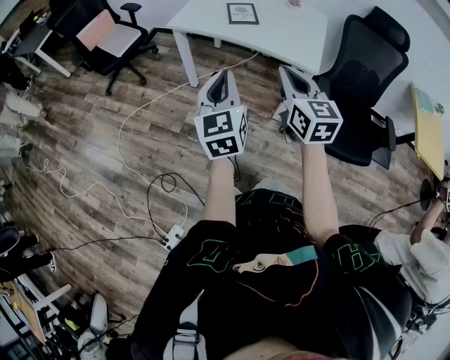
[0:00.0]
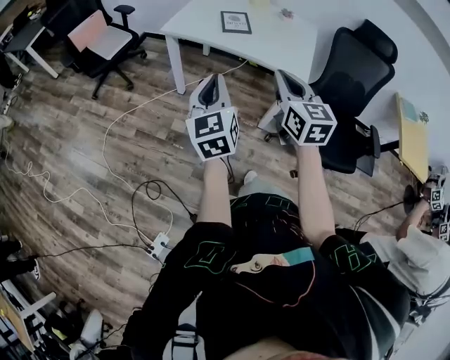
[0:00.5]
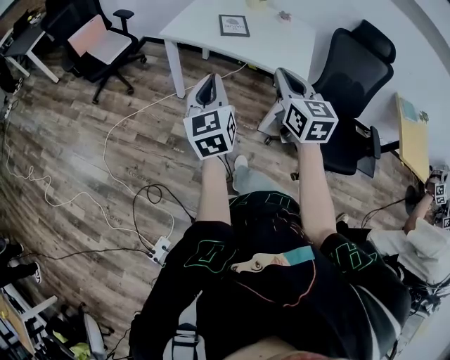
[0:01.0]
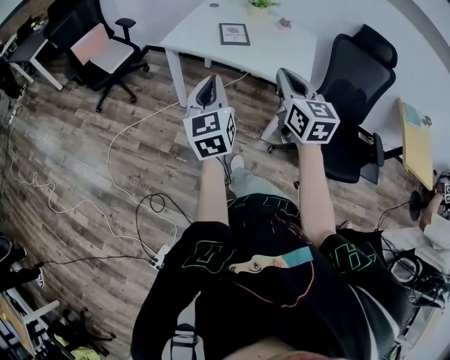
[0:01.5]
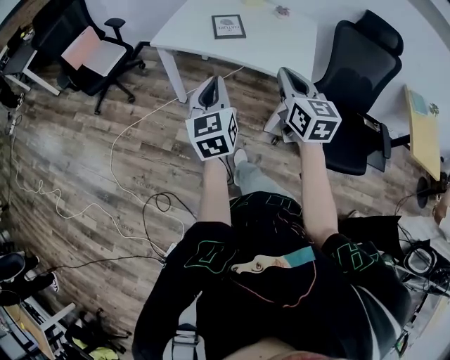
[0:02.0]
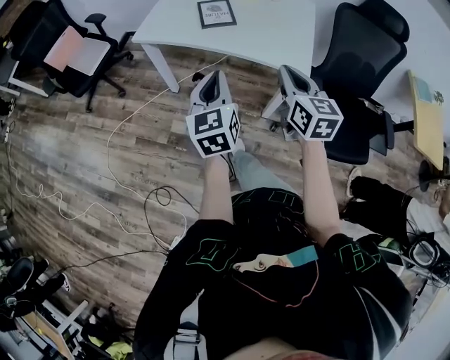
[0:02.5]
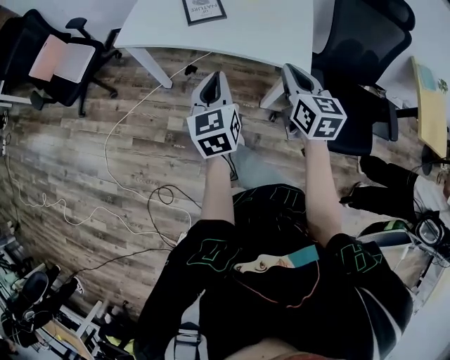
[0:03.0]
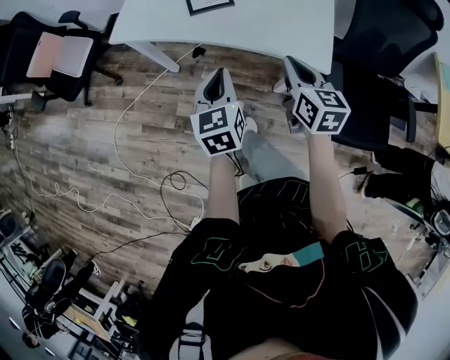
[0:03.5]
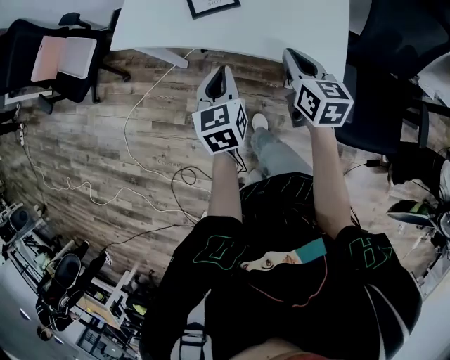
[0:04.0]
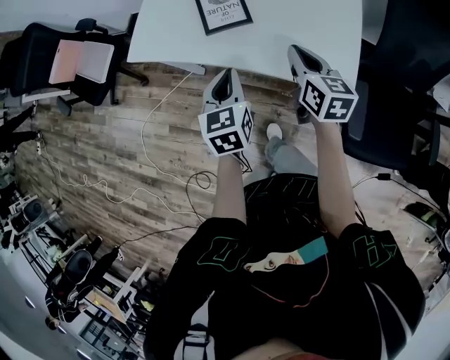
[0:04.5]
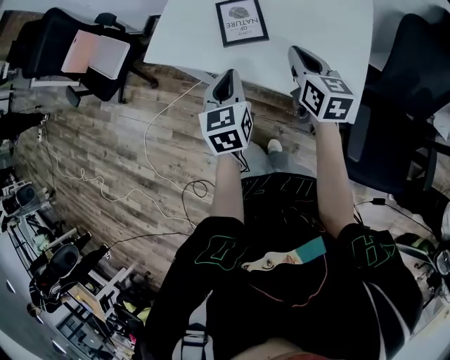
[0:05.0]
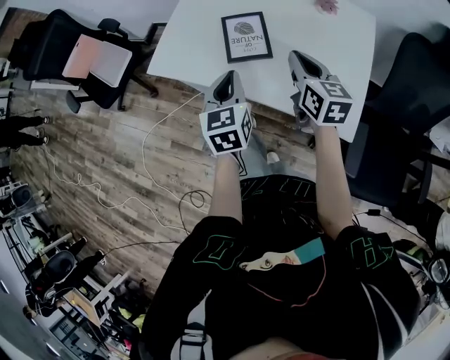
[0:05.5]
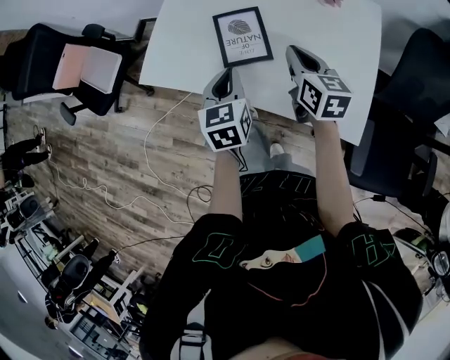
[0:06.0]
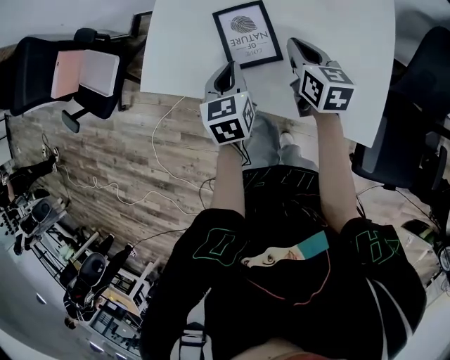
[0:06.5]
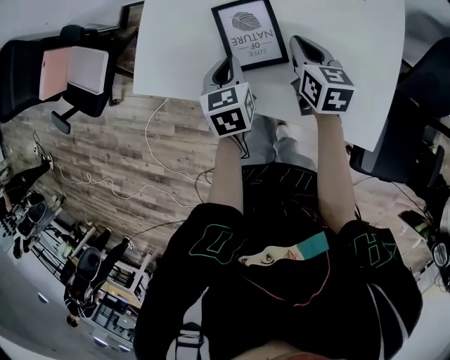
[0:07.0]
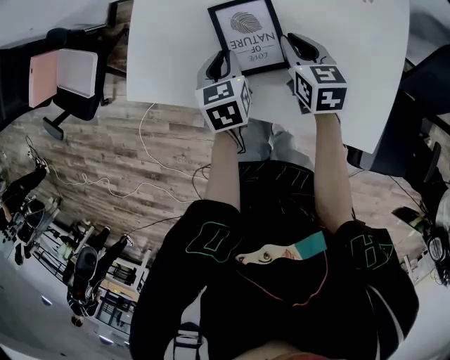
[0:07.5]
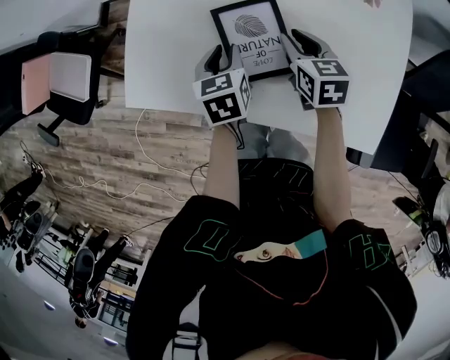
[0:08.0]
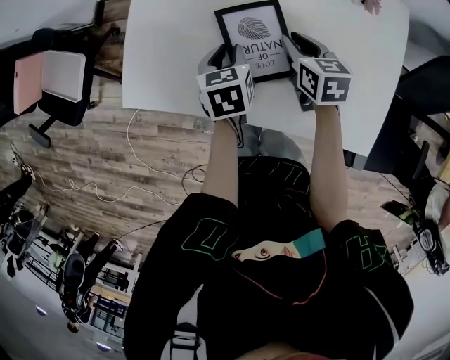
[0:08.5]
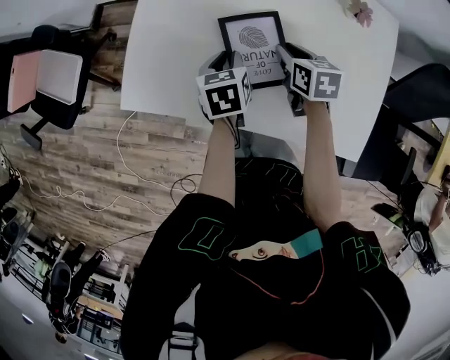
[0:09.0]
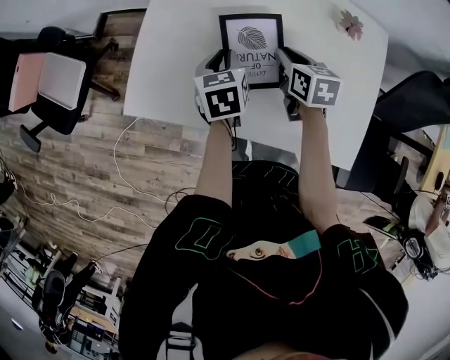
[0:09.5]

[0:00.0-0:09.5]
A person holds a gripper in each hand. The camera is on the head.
0:00.0 to 0:02.0: The grippers both shift forward by some 10 cm.
0:02.0 to 0:04.0: Both grippers travel together forward and downward, roughly 30 cm. The left gripper changes its angle by approximately 20 degrees. Meanwhile the right gripper rotates about 20 degrees.
0:04.0 to 0:05.5: The grippers both shift forward and upward by approximately 15 cm.
0:05.5 to 0:07.5: The left gripper moves forward and downward, roughly 20 cm, and swivels about 20 degrees, while the right gripper moves downward and forward, about 20 cm.
0:07.5 to 0:09.5: The left gripper moves forward, approximately 5 cm, while the right gripper shifts by about 5 cm.

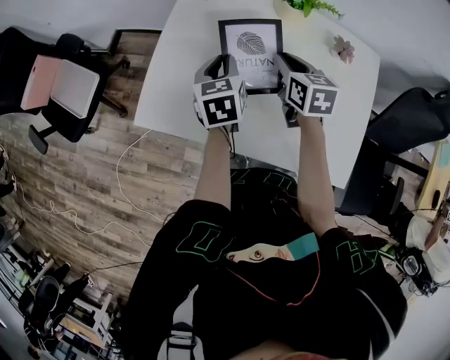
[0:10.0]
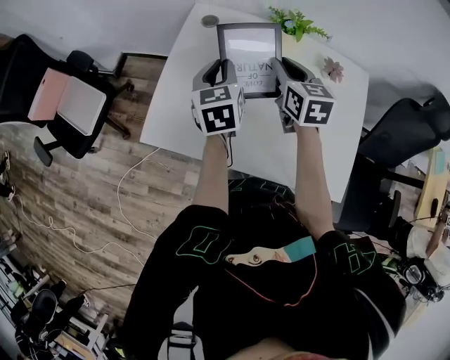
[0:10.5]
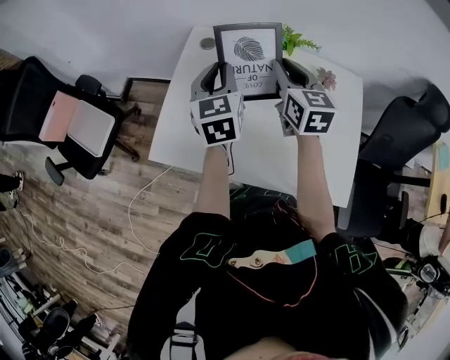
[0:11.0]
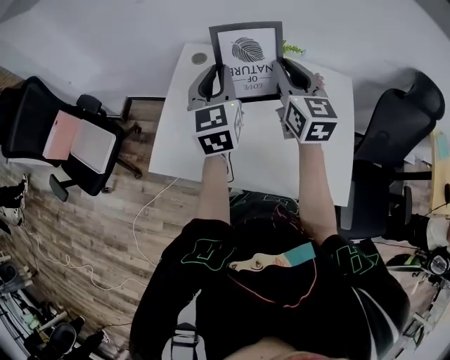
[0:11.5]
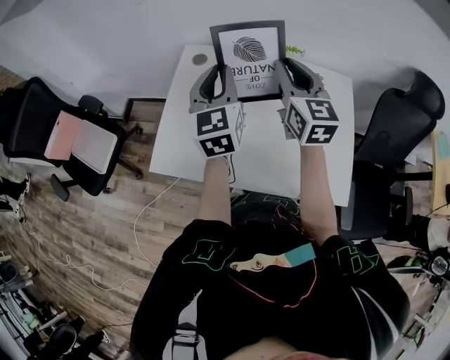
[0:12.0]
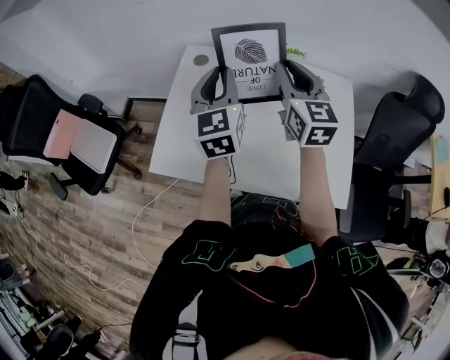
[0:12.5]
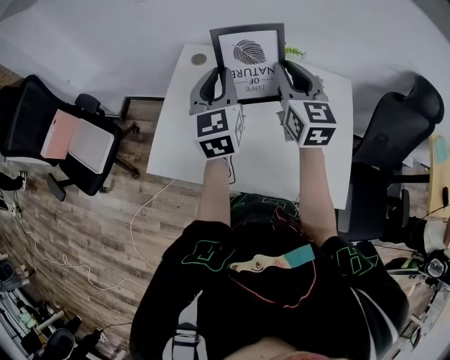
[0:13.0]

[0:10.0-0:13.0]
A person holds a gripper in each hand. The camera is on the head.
0:10.0 to 0:11.5: Both grippers travel together upward, about 20 cm. The left gripper changes its angle by roughly 30 degrees. The right gripper rotates roughly 30 degrees.
0:11.5 to 0:13.0: Neither gripper changes place.

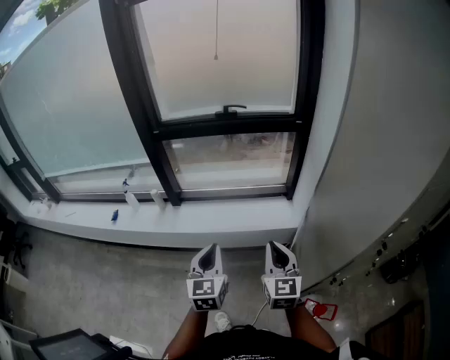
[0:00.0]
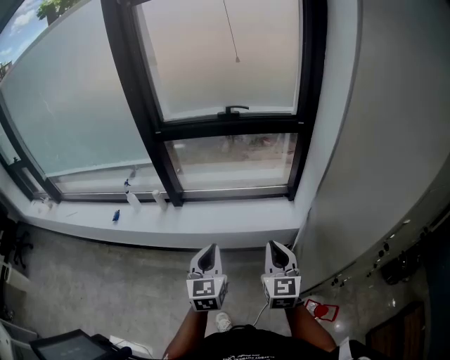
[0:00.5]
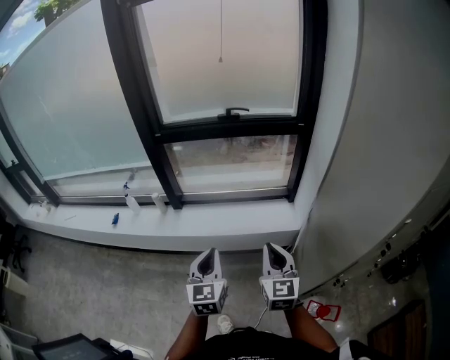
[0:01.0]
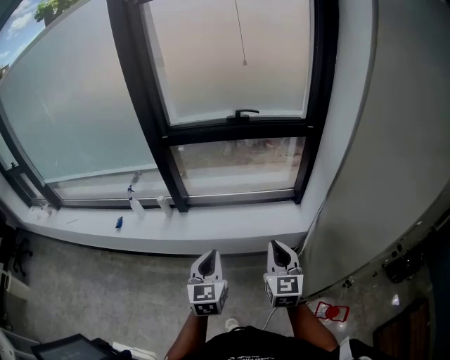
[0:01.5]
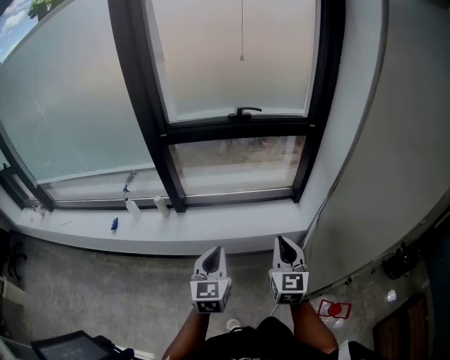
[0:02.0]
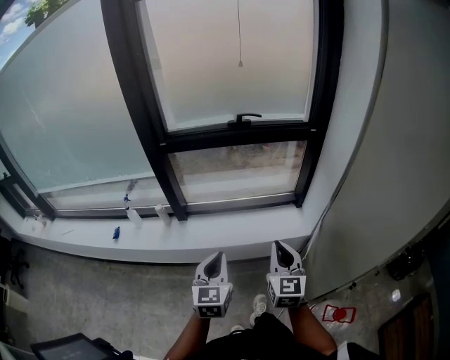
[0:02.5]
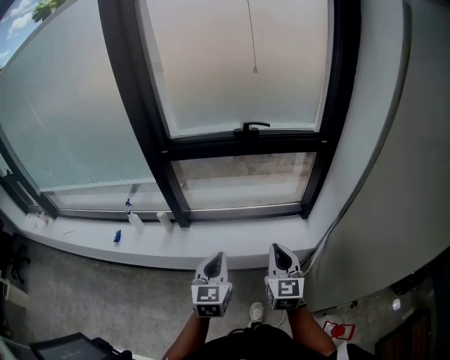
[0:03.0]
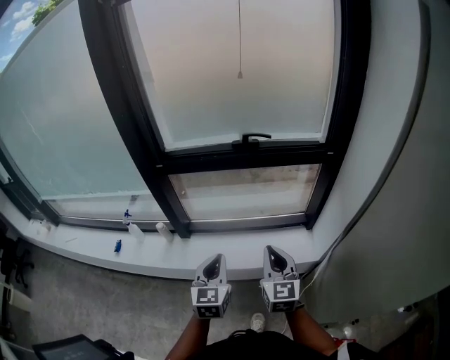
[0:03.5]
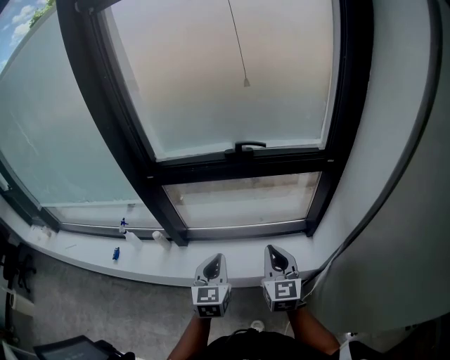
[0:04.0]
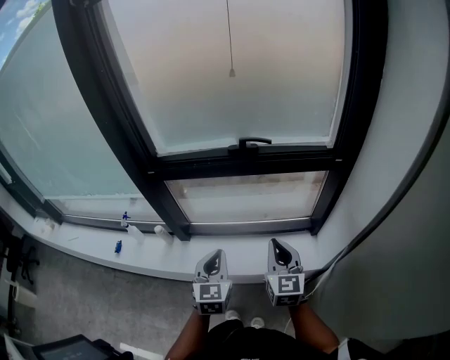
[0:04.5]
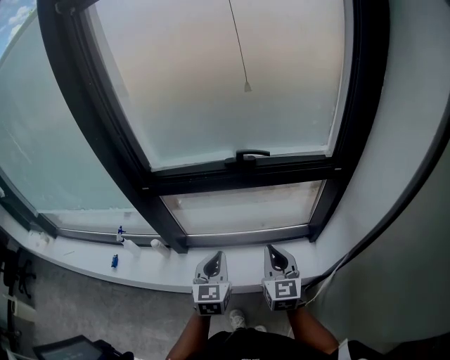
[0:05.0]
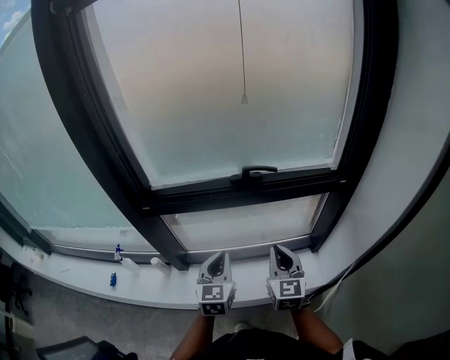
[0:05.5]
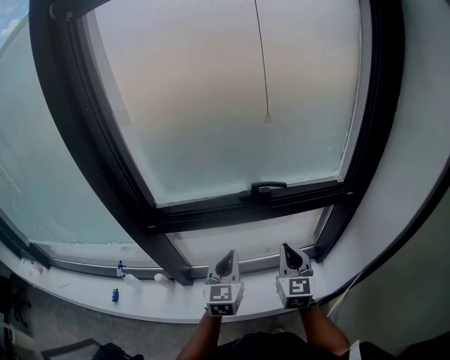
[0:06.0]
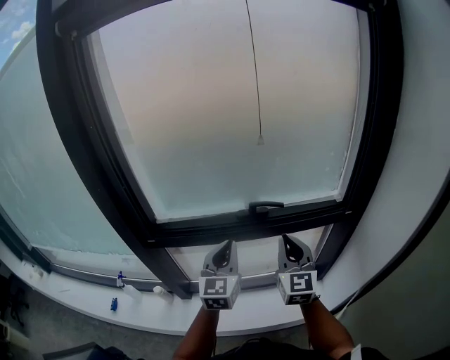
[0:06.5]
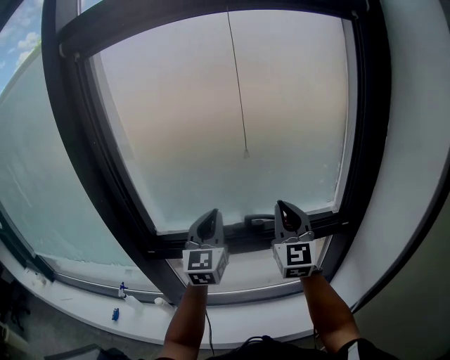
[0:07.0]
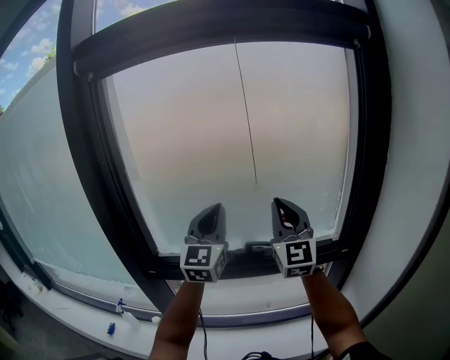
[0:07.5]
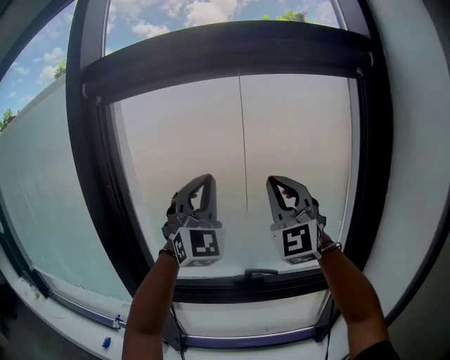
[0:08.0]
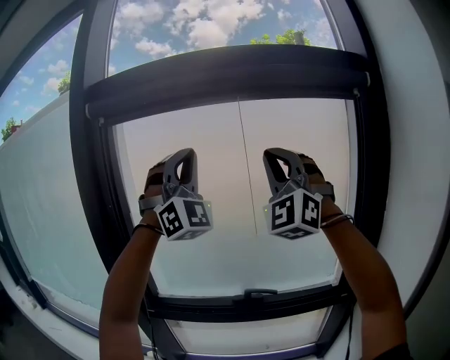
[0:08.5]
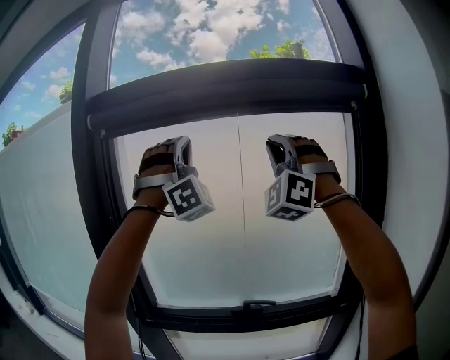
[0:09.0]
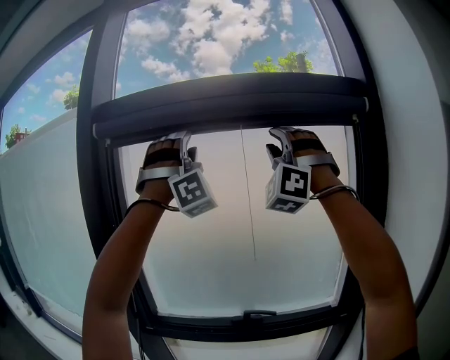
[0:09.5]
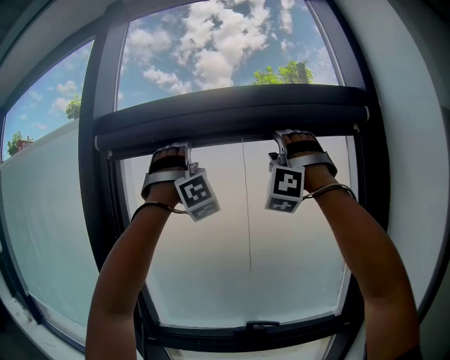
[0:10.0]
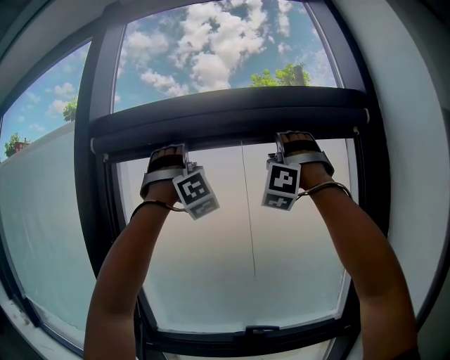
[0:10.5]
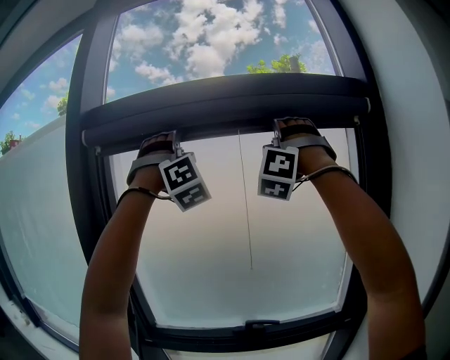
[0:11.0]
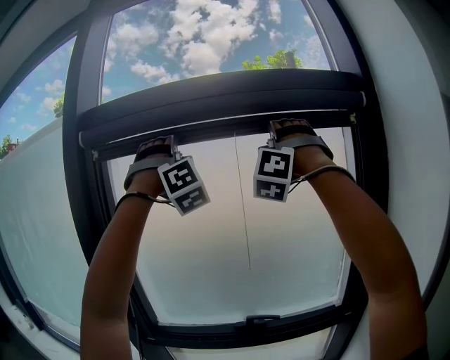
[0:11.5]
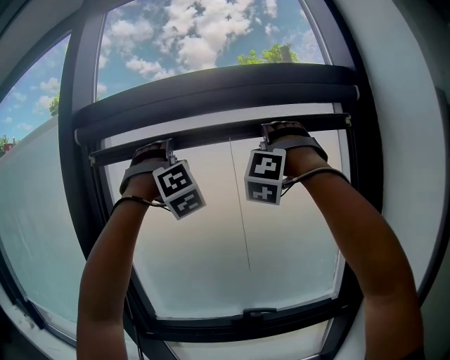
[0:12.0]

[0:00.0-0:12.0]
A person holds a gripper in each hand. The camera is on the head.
0:00.0 to 0:02.0: The left gripper travels to the left by about 10 cm. Meanwhile the right gripper goes approximately 10 cm to the left and forward.
0:02.0 to 0:04.0: The two grippers go some 25 cm forward.
0:04.0 to 0:06.0: Both grippers travel together forward, about 20 cm.
0:06.0 to 0:08.0: Both grippers move upward, about 50 cm. The left gripper tilts its fingers roughly 40 degrees upward. Meanwhile the right gripper angles its fingers upward, by some 40 degrees.
0:08.0 to 0:10.0: Both grippers move upward, some 20 cm. The left gripper twists approximately 50 degrees clockwise, seen from behind, and opens its fingers. The right gripper rolls counterclockwise, seen from behind, by some 60 degrees, and opens.
0:10.0 to 0:12.0: The right gripper moves approximately 5 cm.

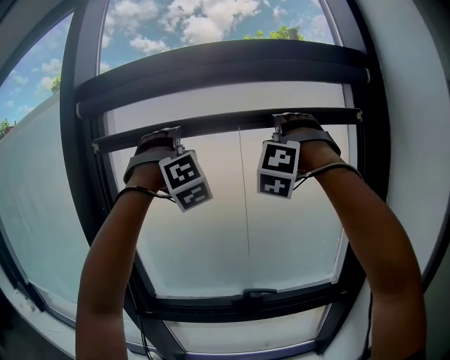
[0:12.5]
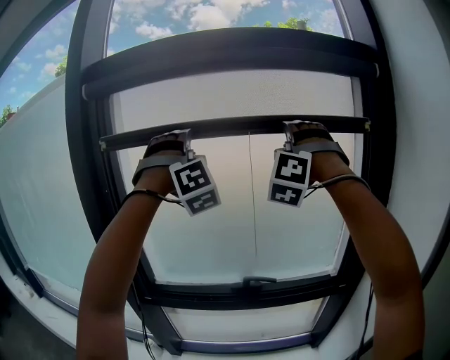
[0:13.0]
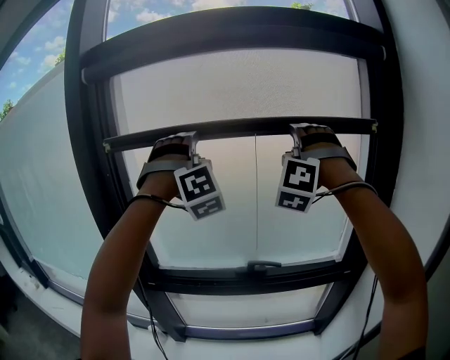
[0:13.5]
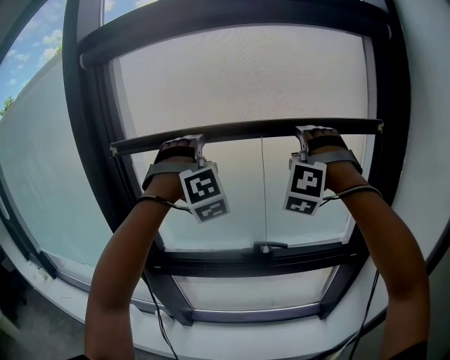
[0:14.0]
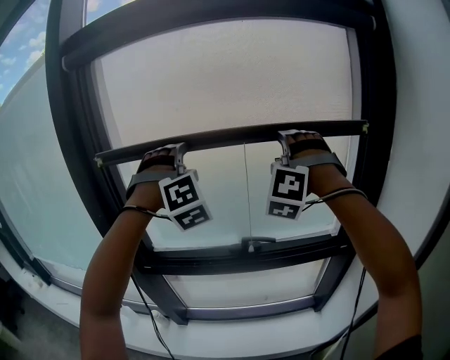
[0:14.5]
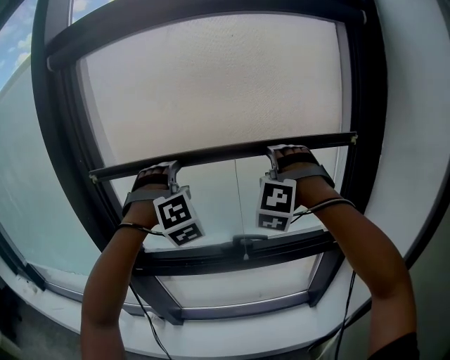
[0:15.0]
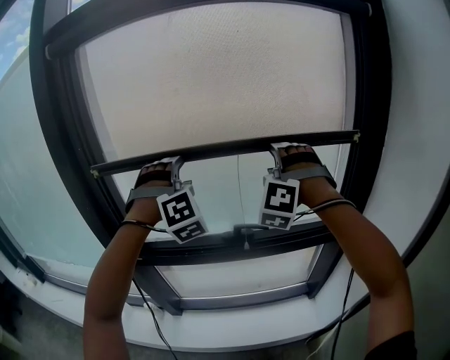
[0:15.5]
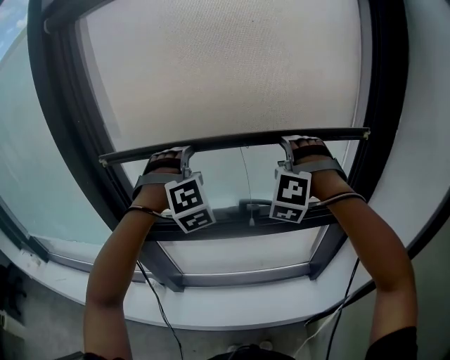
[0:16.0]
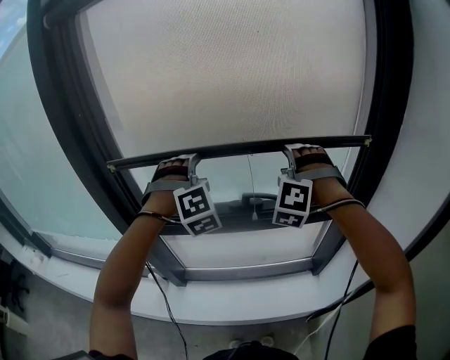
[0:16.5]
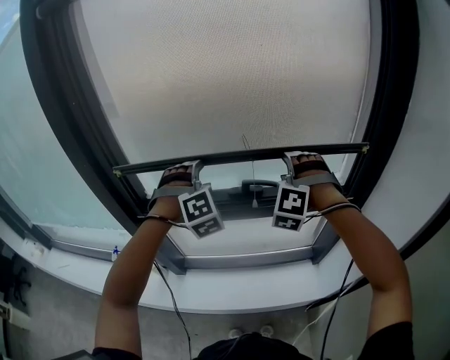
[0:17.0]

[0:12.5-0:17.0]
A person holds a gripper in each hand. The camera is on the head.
0:12.5 to 0:14.5: Both grippers move downward, roughly 20 cm.
0:14.5 to 0:17.0: The two grippers go some 25 cm downward.
